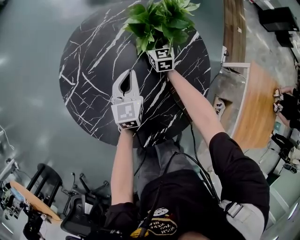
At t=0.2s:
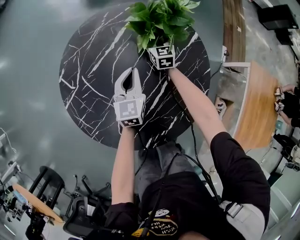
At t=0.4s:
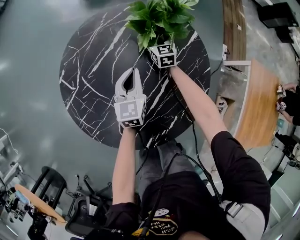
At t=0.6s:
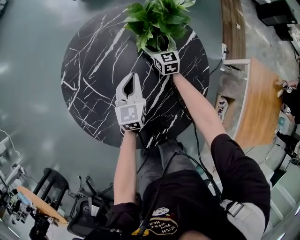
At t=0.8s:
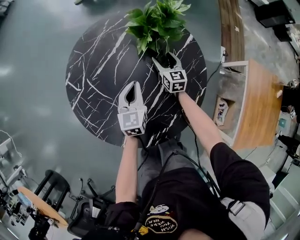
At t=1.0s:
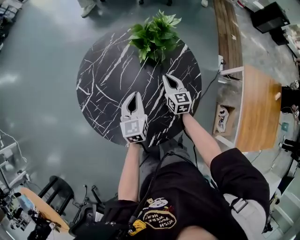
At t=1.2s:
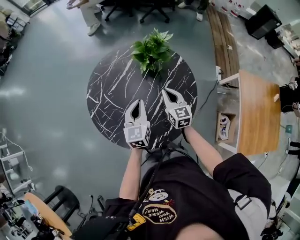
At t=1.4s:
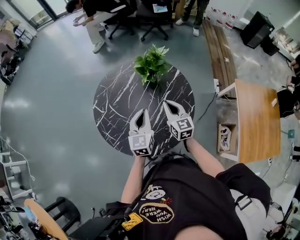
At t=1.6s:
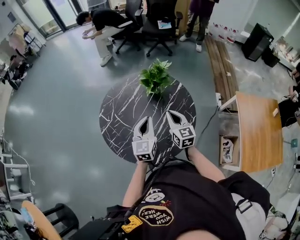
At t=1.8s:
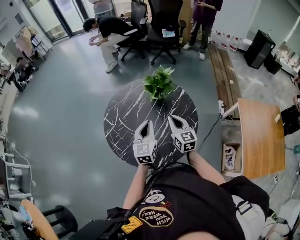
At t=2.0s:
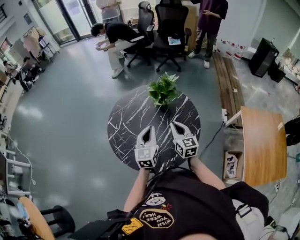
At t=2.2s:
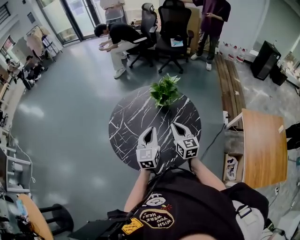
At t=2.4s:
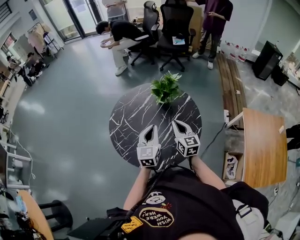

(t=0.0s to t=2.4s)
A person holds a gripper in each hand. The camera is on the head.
t=0.0s - t=1.2s: The right gripper travels backward and upward by some 30 cm, and closes its fingers. The left gripper travels upward and backward by approximately 20 cm.
t=1.2s - t=2.4s: The two grippers go some 15 cm upward and backward.

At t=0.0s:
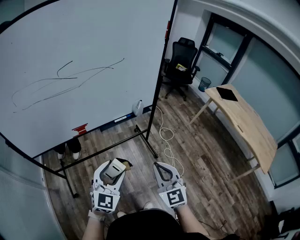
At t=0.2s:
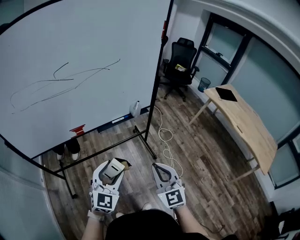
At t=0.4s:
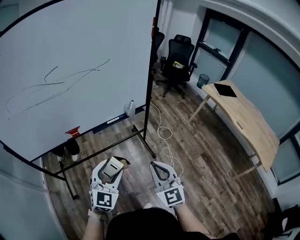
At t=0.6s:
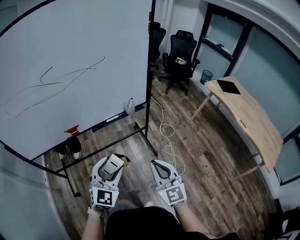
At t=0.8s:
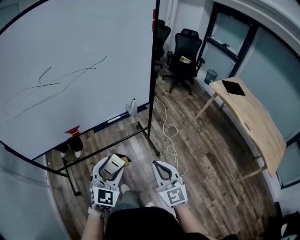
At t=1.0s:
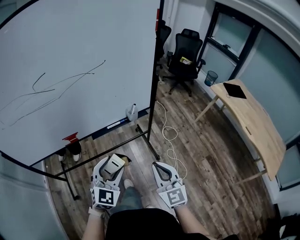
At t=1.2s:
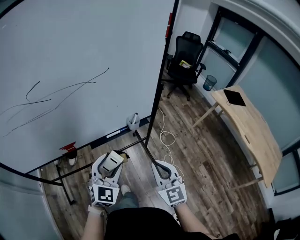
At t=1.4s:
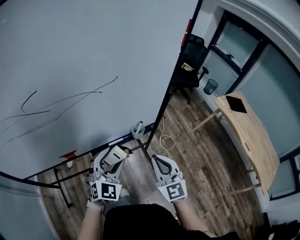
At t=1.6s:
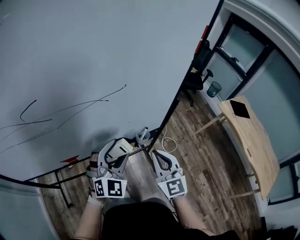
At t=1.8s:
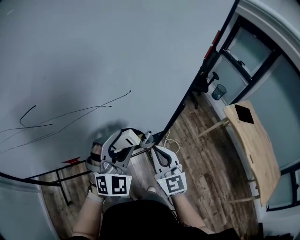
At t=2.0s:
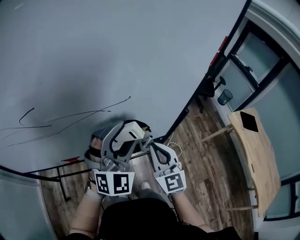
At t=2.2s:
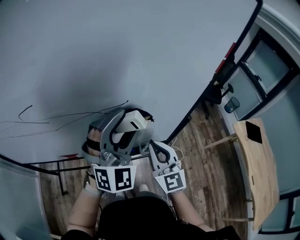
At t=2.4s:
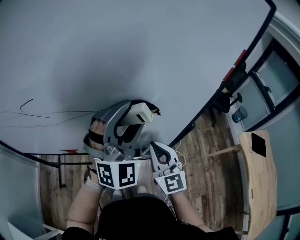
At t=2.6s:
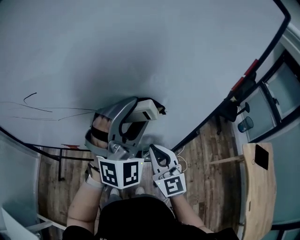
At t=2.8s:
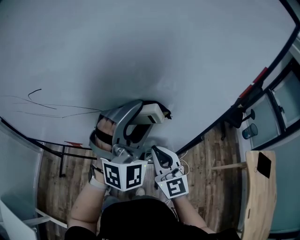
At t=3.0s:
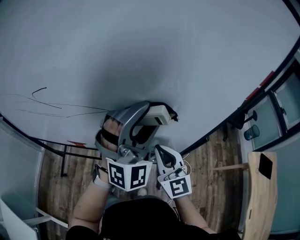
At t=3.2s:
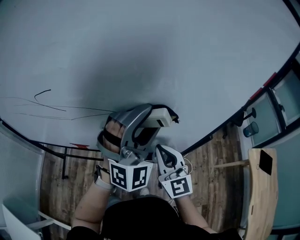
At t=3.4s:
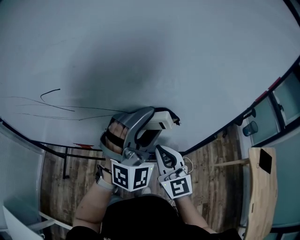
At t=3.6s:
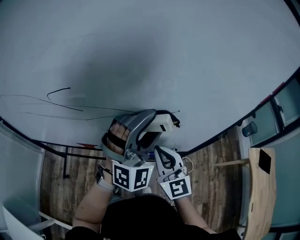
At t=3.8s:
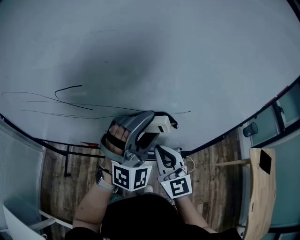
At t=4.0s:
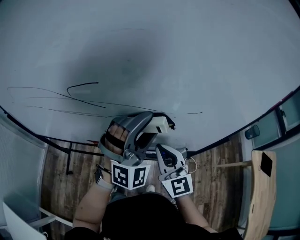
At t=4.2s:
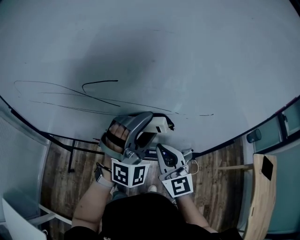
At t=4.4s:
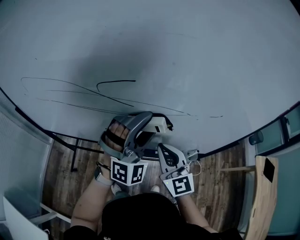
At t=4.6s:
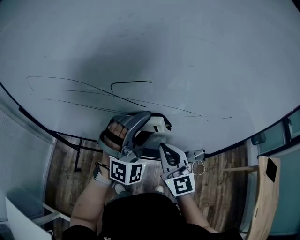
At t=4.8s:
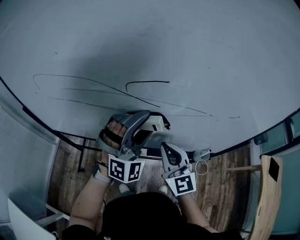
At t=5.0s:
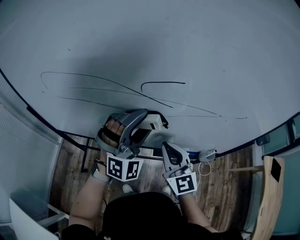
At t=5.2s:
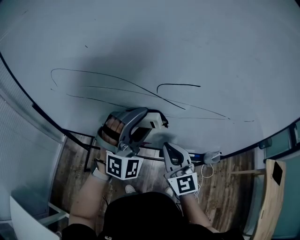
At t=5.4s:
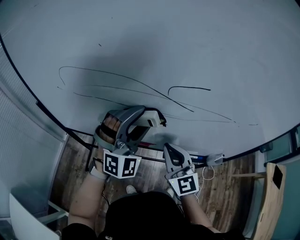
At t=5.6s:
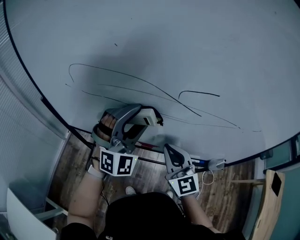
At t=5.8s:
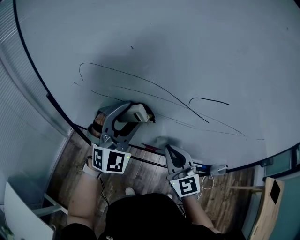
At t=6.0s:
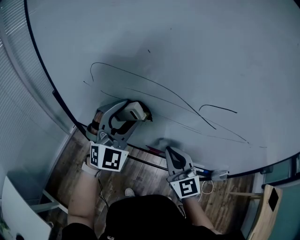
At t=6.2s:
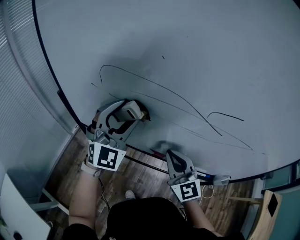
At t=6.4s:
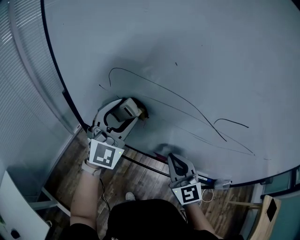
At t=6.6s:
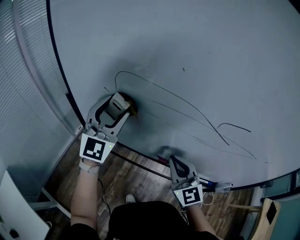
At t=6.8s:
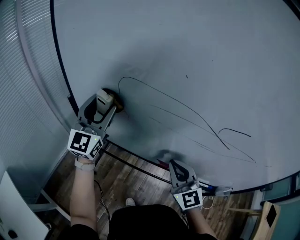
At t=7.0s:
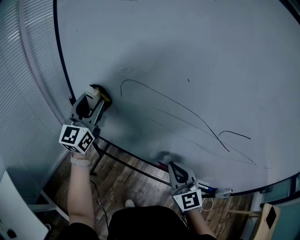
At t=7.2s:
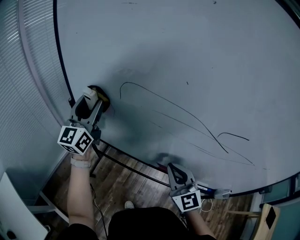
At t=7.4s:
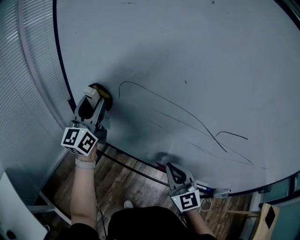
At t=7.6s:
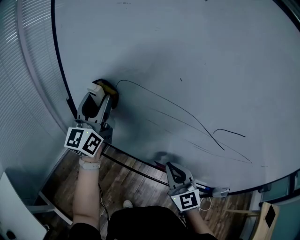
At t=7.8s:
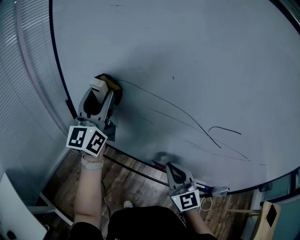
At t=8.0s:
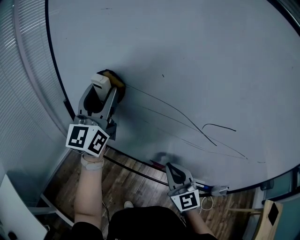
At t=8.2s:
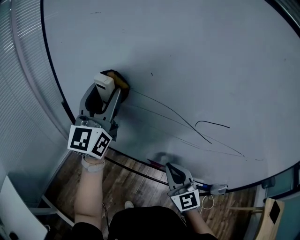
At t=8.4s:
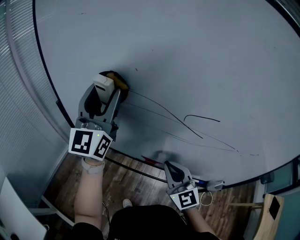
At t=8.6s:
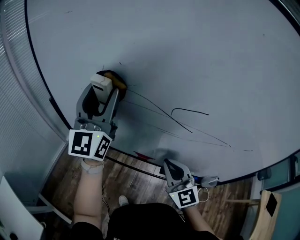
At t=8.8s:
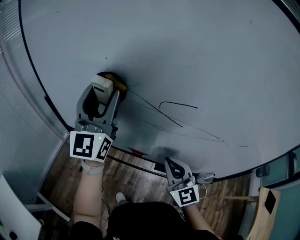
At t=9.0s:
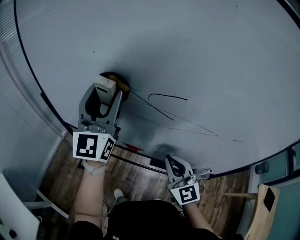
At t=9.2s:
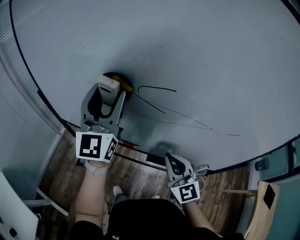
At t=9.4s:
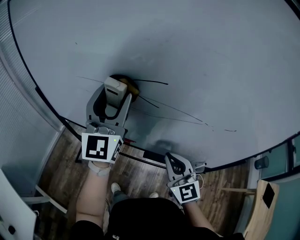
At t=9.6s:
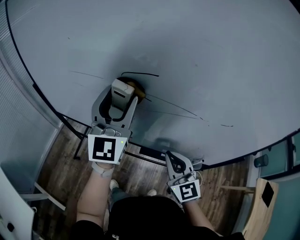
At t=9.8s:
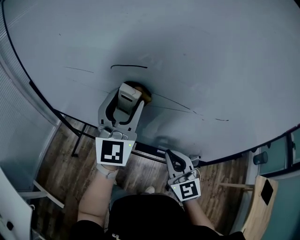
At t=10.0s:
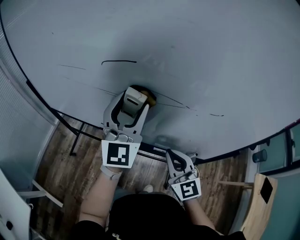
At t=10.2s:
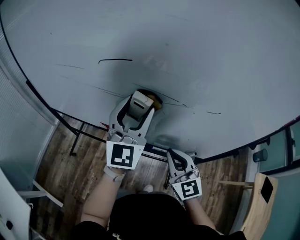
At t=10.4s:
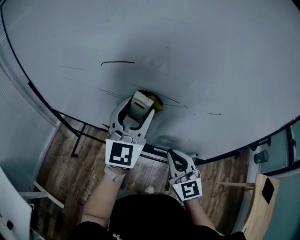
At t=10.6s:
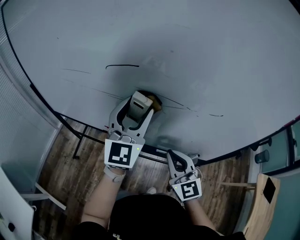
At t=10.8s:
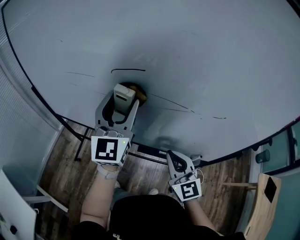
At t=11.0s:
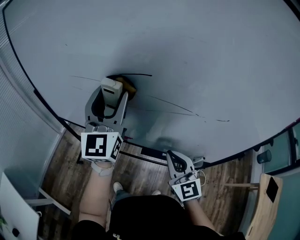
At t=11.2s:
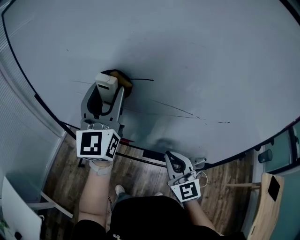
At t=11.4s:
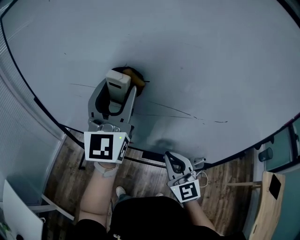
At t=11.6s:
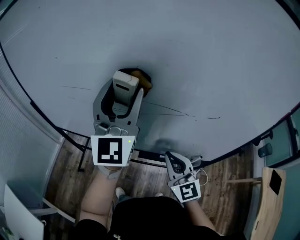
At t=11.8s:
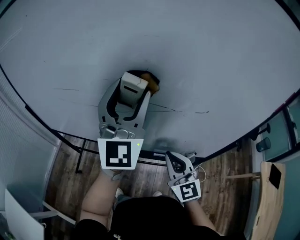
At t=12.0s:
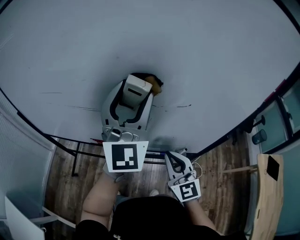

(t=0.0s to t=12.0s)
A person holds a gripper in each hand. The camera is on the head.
t=0.0s - t=1.6s: The grippers both shift forward by roughly 35 cm.
t=1.6s - t=3.0s: The left gripper heads upward, covering about 15 cm, and changes its angle by about 30 degrees, while the right gripper changes place by about 15 cm, and changes its angle by approximately 30 degrees.
t=3.0s - t=4.4s: The right gripper goes some 20 cm to the left; the left gripper heads to the left and downward, covering approximately 25 cm.
t=4.4s - t=6.0s: The left gripper shifts roughly 30 cm to the left. Meanwhile the right gripper moves to the left, roughly 20 cm.
t=6.0s - t=7.6s: The left gripper is displaced to the left and forward by some 20 cm, and twists about 50 degrees counterclockwise, seen from behind.
t=7.6s - t=9.0s: The two grippers go some 20 cm to the right and backward.
t=9.0s - t=10.4s: The left gripper goes about 25 cm to the right. The right gripper shifts some 15 cm to the right and backward.
t=10.4s - t=12.0s: The left gripper travels upward by approximately 10 cm, and moves approximately 15 cm to the left and comes back. Meanwhile the right gripper shifts some 5 cm to the right.

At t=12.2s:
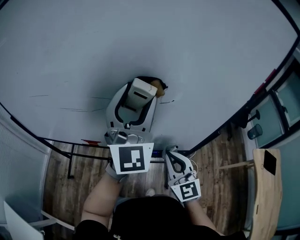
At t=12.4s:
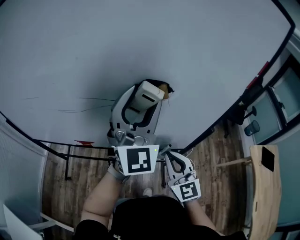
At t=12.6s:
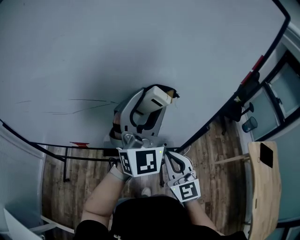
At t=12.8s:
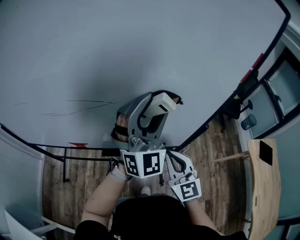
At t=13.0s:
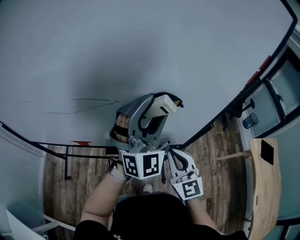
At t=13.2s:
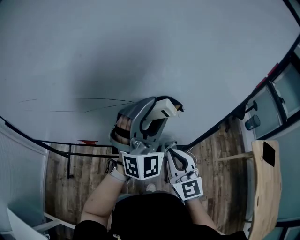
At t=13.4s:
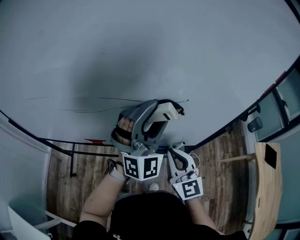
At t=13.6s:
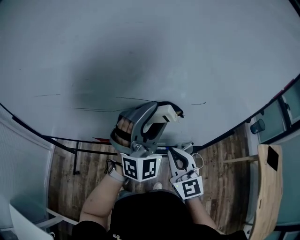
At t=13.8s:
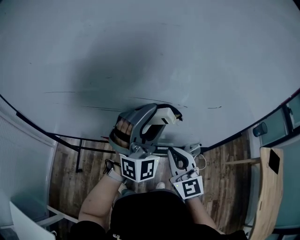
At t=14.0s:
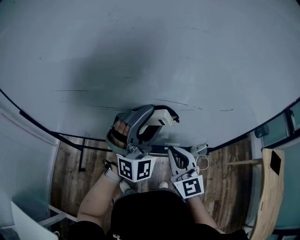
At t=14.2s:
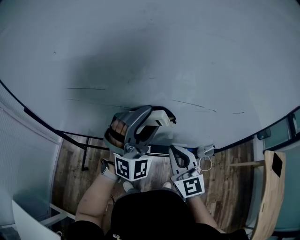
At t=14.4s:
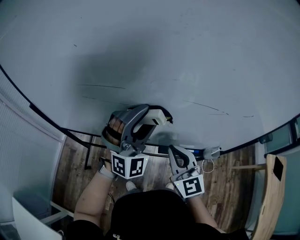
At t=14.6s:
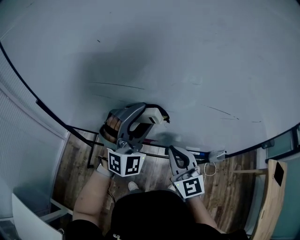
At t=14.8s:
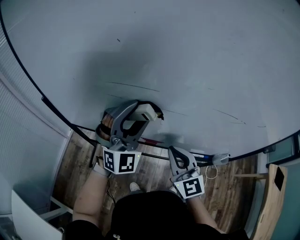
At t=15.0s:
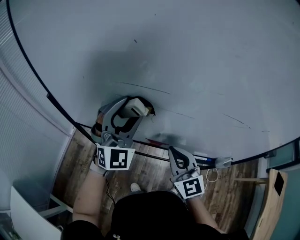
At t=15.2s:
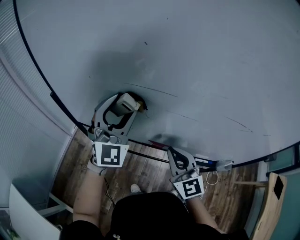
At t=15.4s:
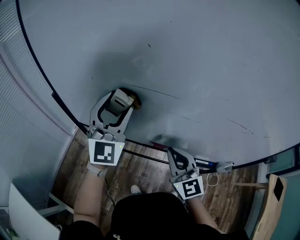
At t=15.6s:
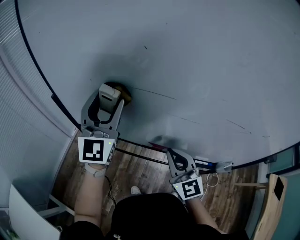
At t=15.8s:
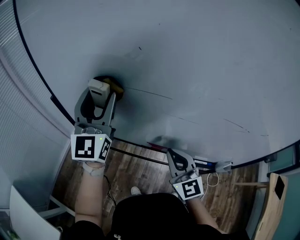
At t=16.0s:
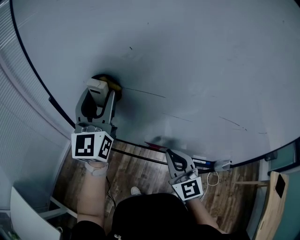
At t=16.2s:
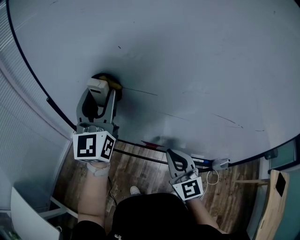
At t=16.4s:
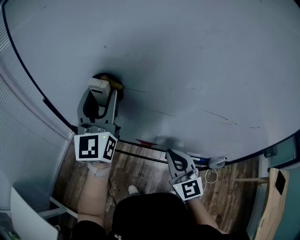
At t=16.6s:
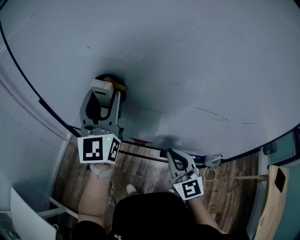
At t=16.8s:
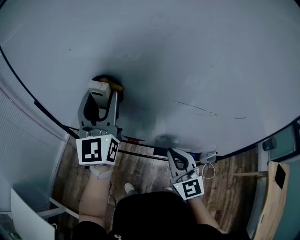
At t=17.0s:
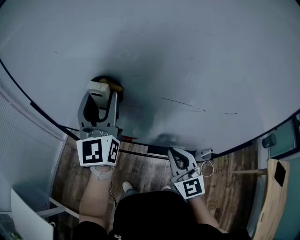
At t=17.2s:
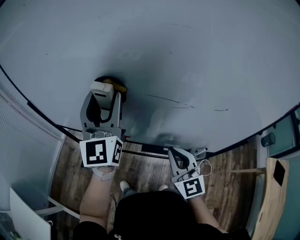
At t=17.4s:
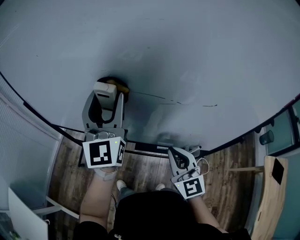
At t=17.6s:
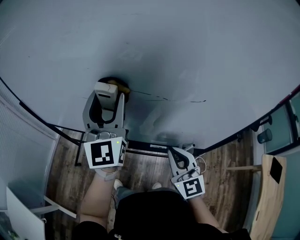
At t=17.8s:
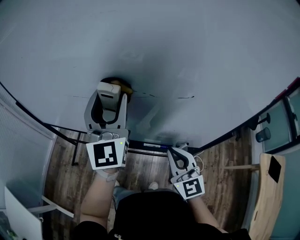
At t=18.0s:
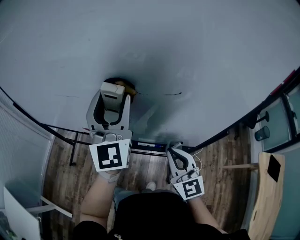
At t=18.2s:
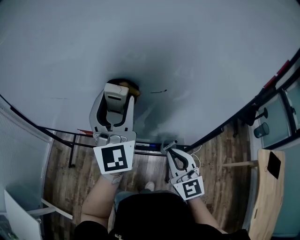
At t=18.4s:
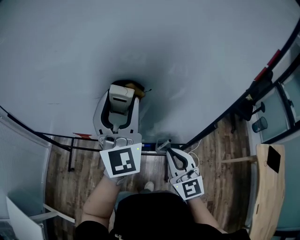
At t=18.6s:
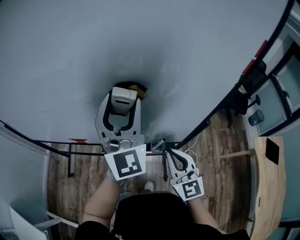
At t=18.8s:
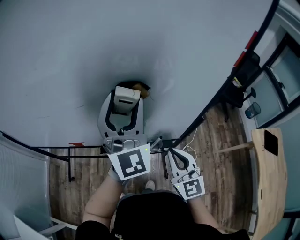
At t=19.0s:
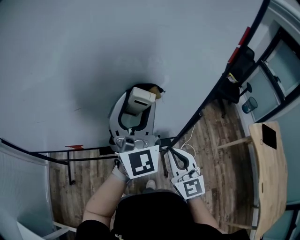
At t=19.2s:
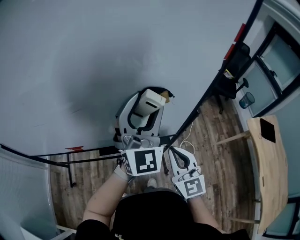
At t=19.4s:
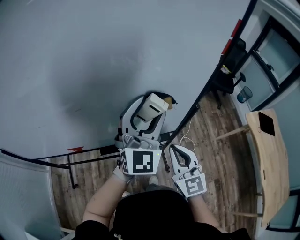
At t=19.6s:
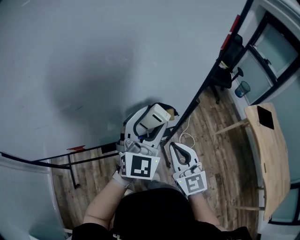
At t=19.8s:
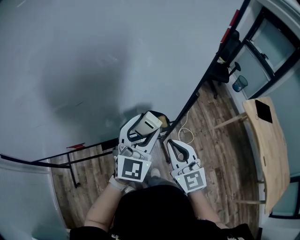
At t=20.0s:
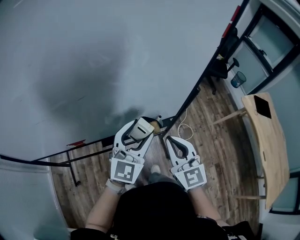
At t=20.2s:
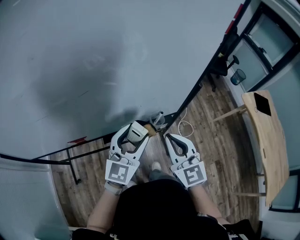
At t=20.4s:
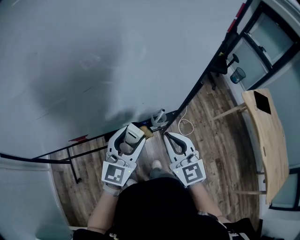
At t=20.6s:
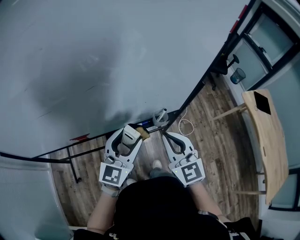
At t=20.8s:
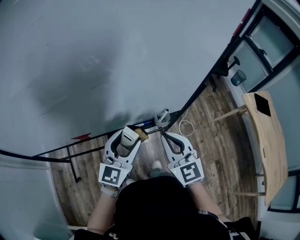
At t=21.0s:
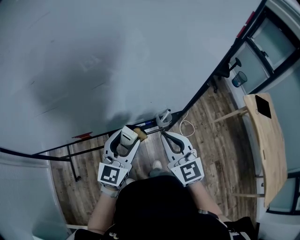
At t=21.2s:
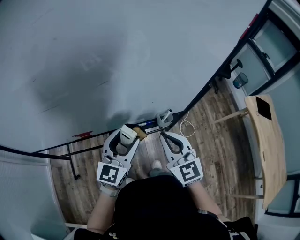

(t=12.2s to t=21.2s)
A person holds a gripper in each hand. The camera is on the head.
t=12.2s - t=13.8s: The left gripper shifts approximately 10 cm downward, reaches about 15 cm to the right, then returns, and swivels approximately 30 degrees; the right gripper moves to the left, about 10 cm.
t=13.8s - t=15.2s: Both grippers travel together to the left, roughly 30 cm. The left gripper swivels some 20 degrees.
t=15.2s - t=16.6s: The right gripper heads to the right, covering some 10 cm. Meanwhile the left gripper travels upward by about 10 cm, and swivels some 40 degrees.
t=16.6s - t=18.2s: The right gripper is displaced to the right and backward by about 30 cm. The left gripper goes roughly 35 cm to the right.
t=18.2s - t=19.8s: The left gripper ends up approximately 20 cm from where it was, and swivels approximately 50 degrees. Meanwhile the right gripper changes place by about 5 cm, and swivels about 20 degrees.
t=19.8s - t=21.2s: The right gripper travels to the left by approximately 10 cm; the left gripper moves to the left, downward and backward, approximately 20 cm.
